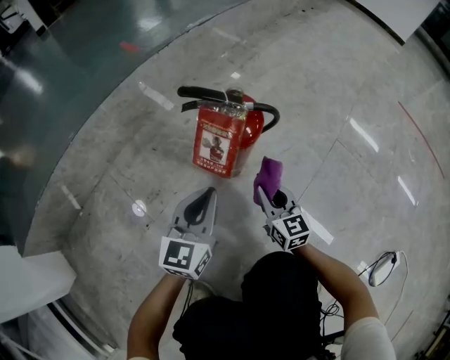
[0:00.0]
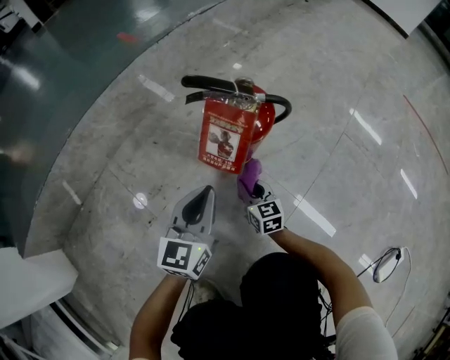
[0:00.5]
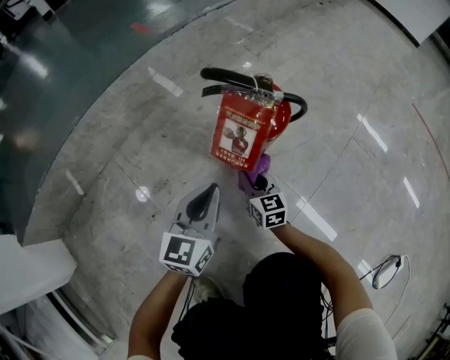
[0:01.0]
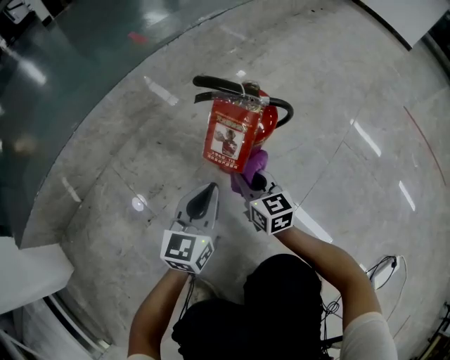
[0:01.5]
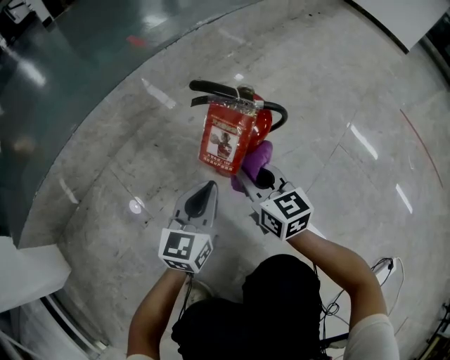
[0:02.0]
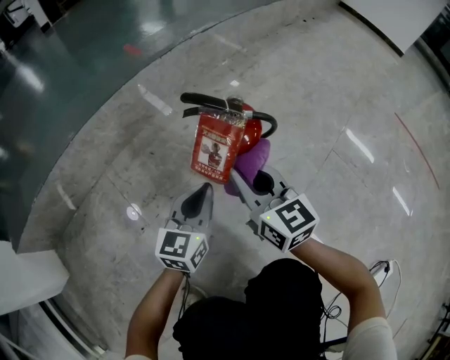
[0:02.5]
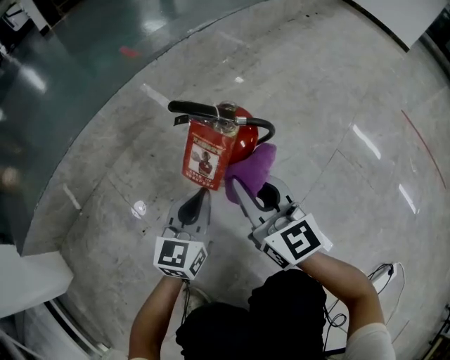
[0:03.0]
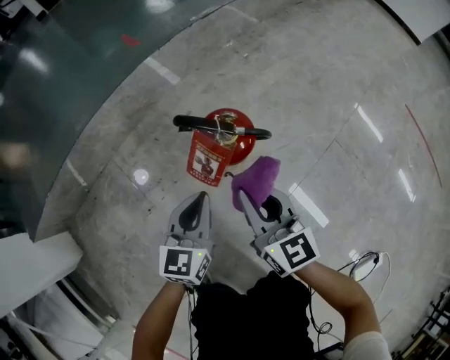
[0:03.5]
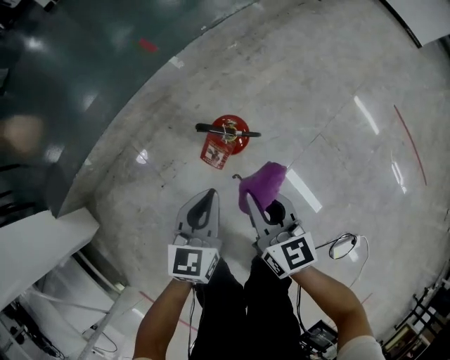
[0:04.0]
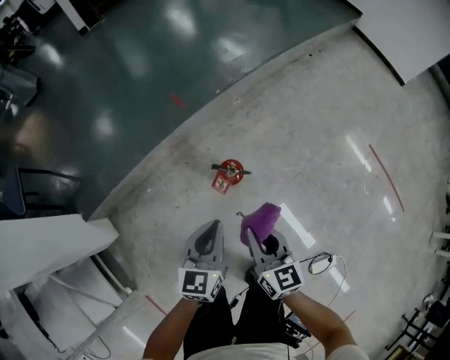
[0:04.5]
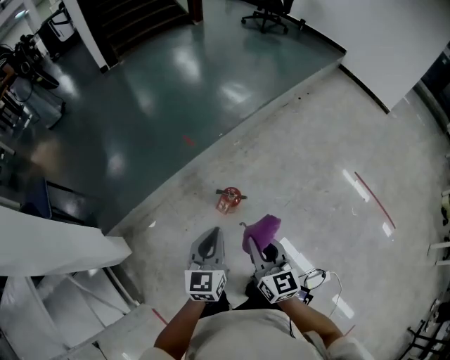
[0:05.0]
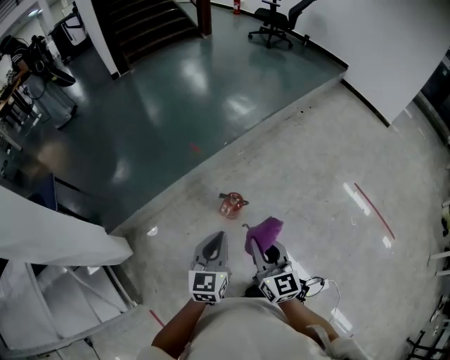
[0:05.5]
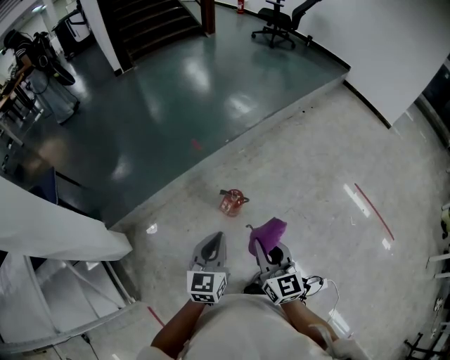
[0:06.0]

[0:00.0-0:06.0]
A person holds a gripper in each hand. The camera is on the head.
0:00.0 to 0:02.0: The right gripper travels upward and to the left by roughly 10 cm.
0:02.0 to 0:04.0: Both grippers move upward, some 30 cm.
0:04.0 to 0:06.0: Both grippers move upward, roughly 50 cm.

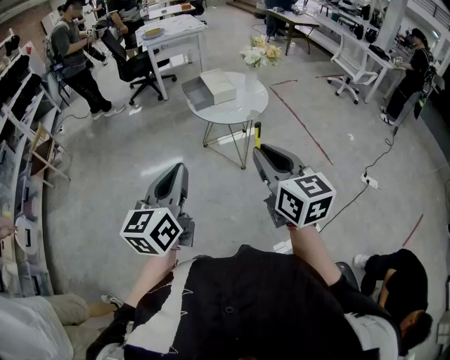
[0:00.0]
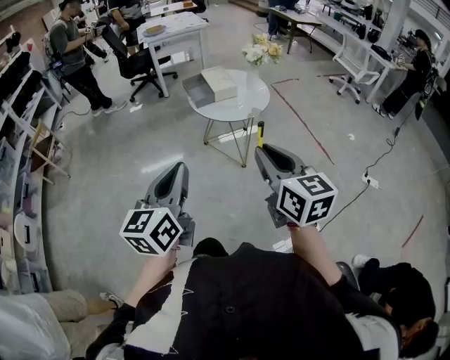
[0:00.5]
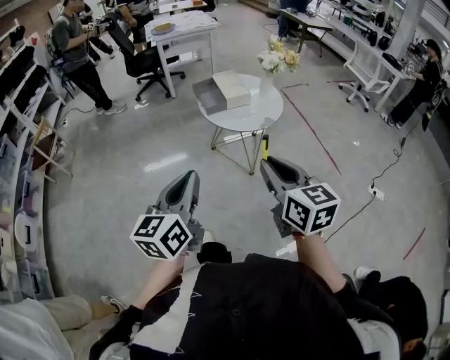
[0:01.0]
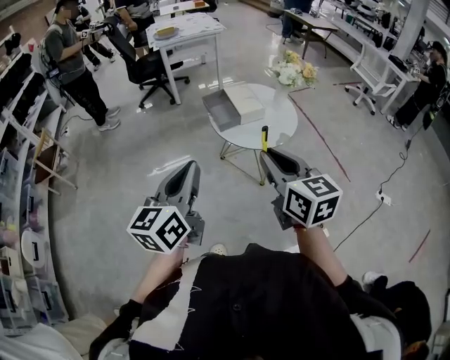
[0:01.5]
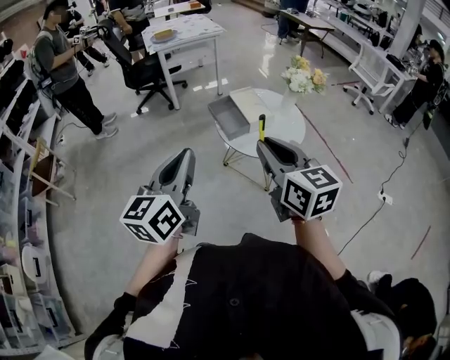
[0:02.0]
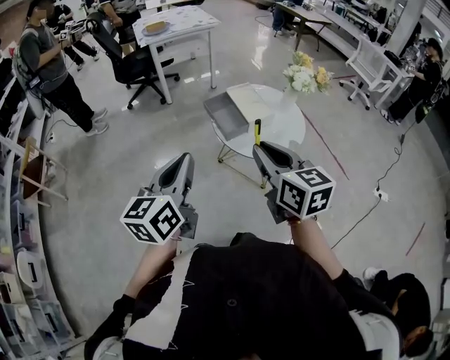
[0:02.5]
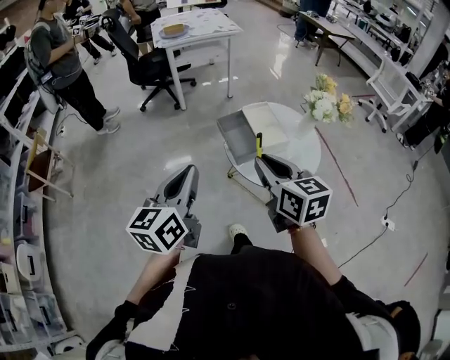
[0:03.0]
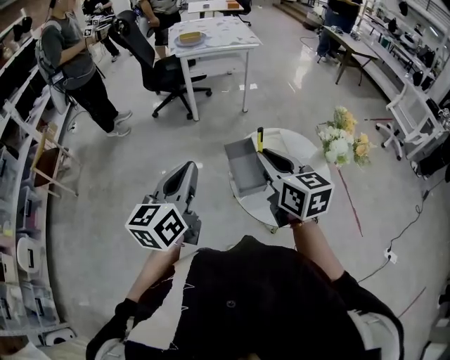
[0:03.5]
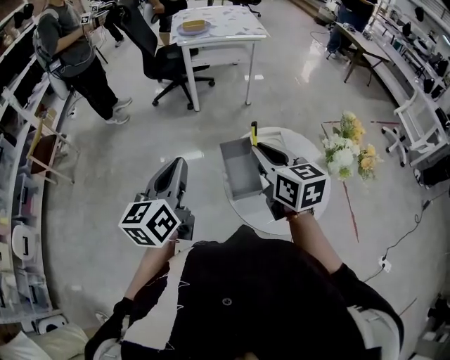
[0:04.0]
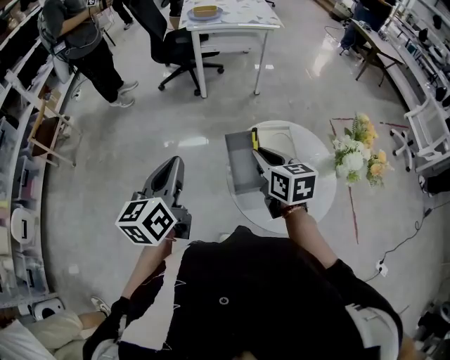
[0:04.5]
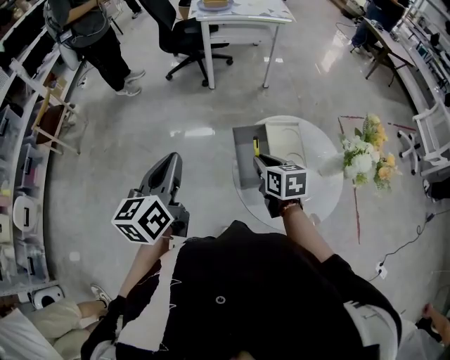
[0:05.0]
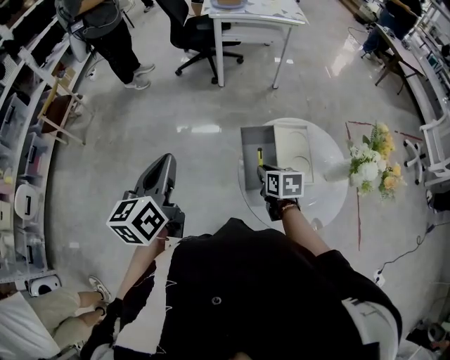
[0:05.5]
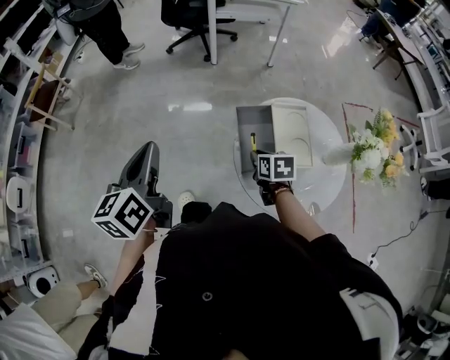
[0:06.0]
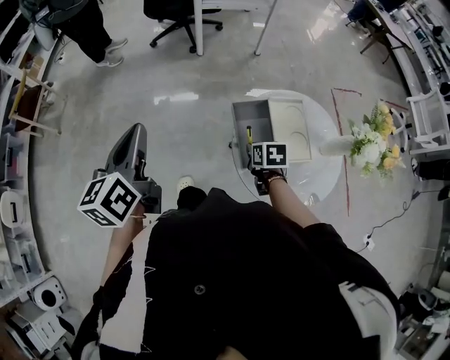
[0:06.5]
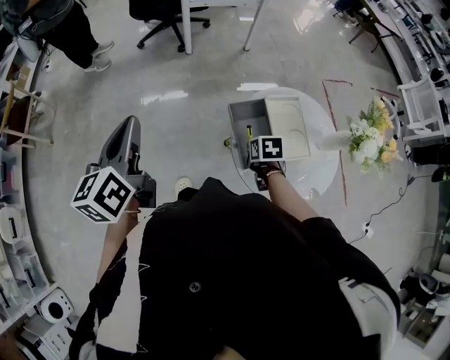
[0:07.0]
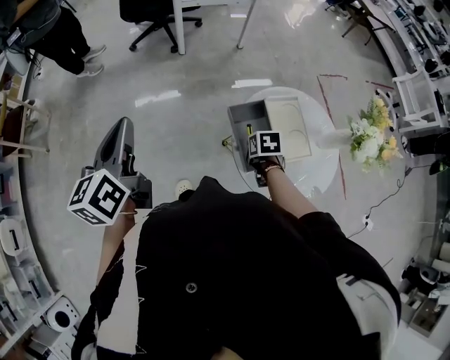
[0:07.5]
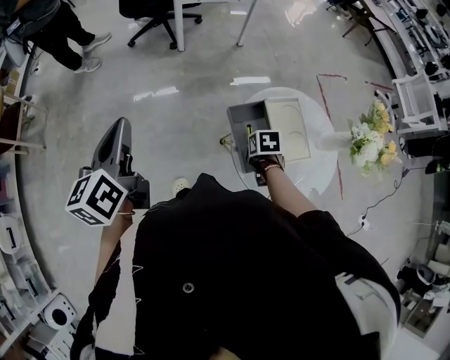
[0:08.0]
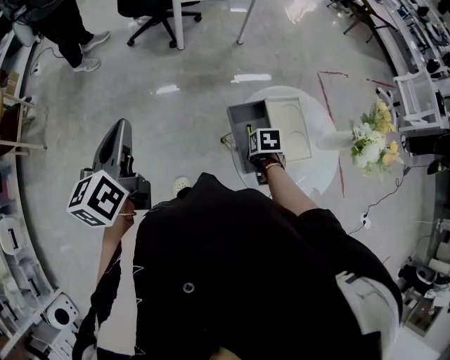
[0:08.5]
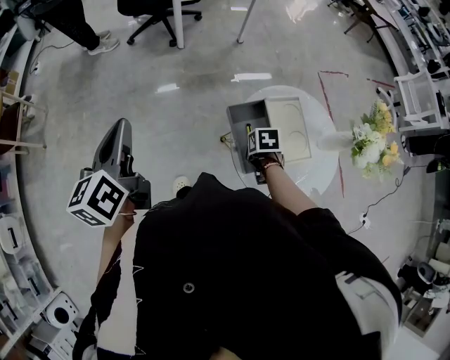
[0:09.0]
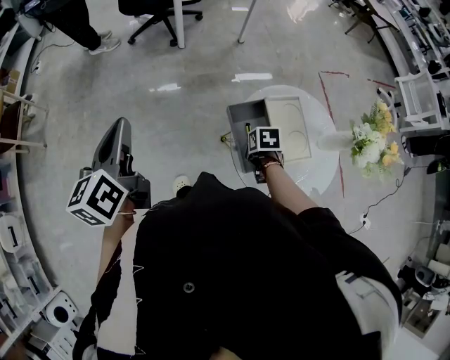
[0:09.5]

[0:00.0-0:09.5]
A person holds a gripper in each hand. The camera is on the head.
0:00.0 to 0:02.0: The two grippers go some 30 cm forward and to the left.
0:02.0 to 0:04.0: The grippers both shift forward by approximately 30 cm. The left gripper swivels about 20 degrees.
0:04.0 to 0:05.5: The right gripper travels downward by some 25 cm, and changes its angle by some 30 degrees; the left gripper heads to the left, covering about 5 cm.
0:05.5 to 0:07.5: The right gripper travels downward by some 5 cm, and swivels roughly 30 degrees; the left gripper goes some 15 cm forward and to the left.
0:07.5 to 0:09.5: There are only small adjustments of the grippers.

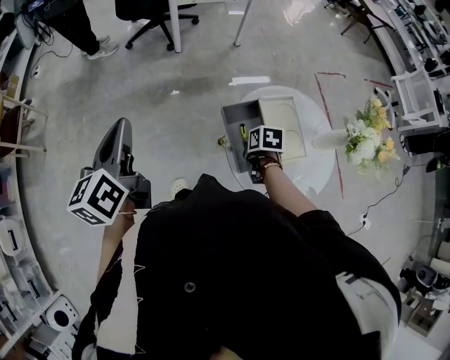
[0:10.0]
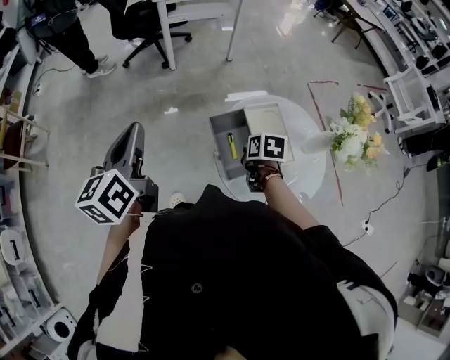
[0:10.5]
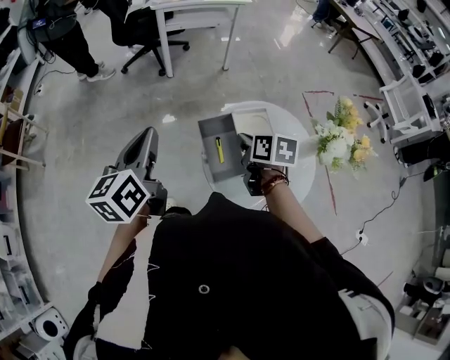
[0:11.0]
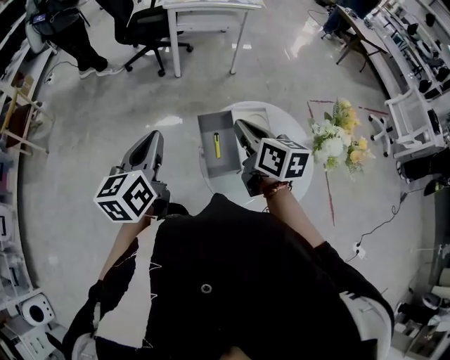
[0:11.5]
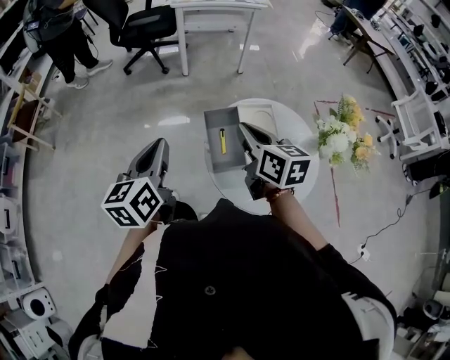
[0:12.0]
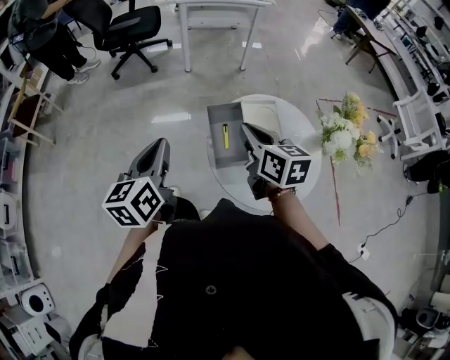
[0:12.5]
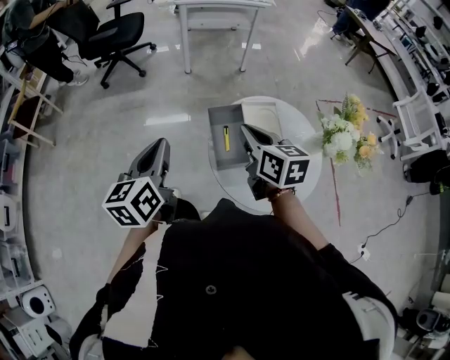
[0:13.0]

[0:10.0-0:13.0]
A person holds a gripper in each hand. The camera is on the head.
0:10.0 to 0:11.5: The left gripper shifts approximately 20 cm to the right and backward. Meanwhile the right gripper heads upward, covering roughly 25 cm, and points its fingers about 50 degrees further upward.
0:11.5 to 0:13.0: The left gripper ends up some 5 cm from where it was.

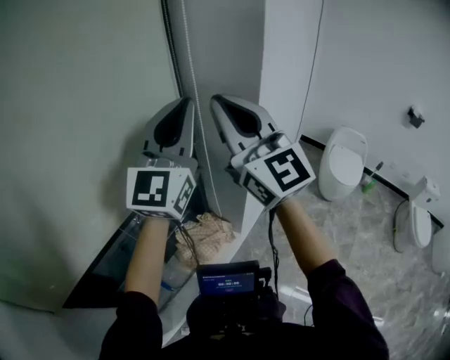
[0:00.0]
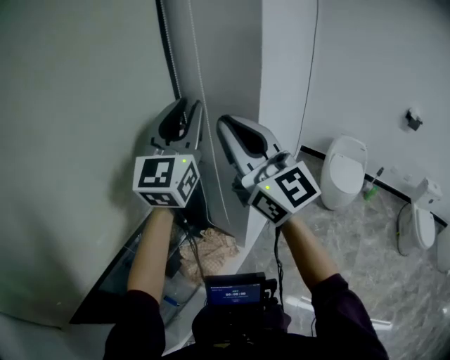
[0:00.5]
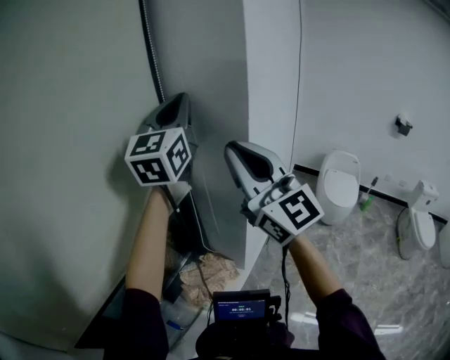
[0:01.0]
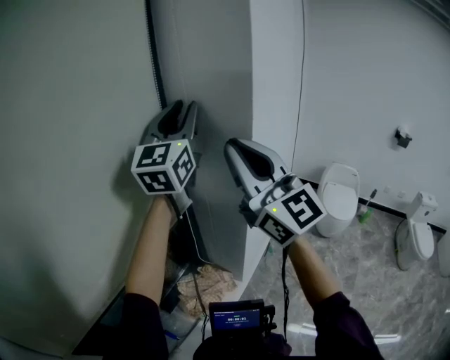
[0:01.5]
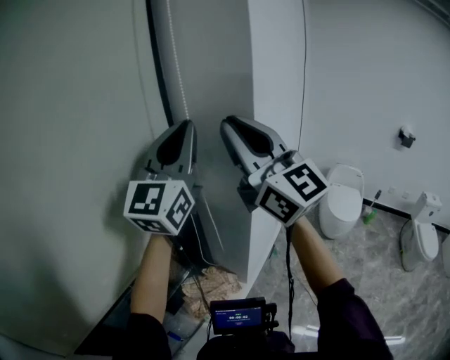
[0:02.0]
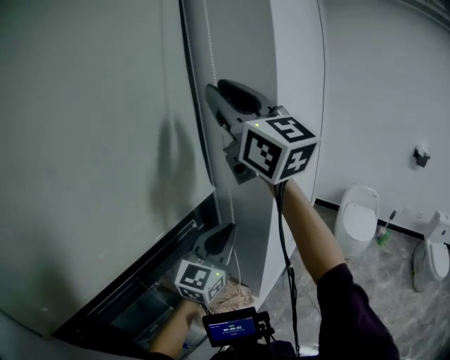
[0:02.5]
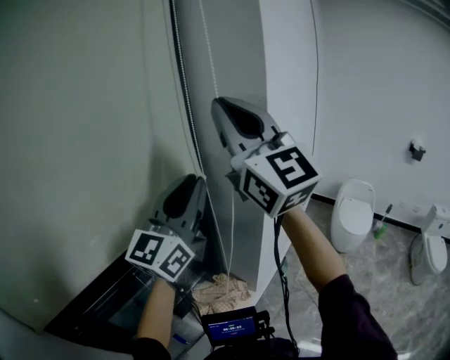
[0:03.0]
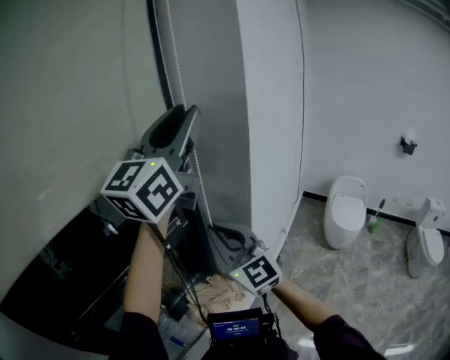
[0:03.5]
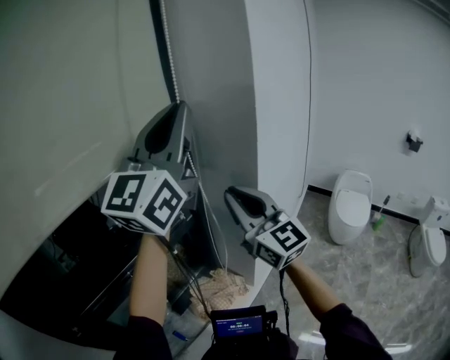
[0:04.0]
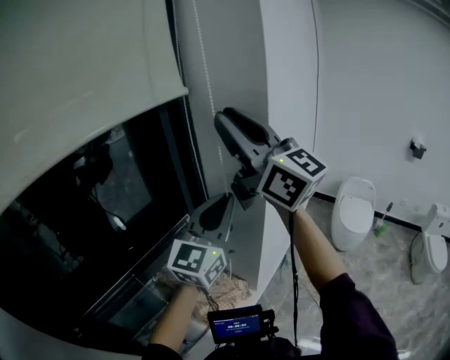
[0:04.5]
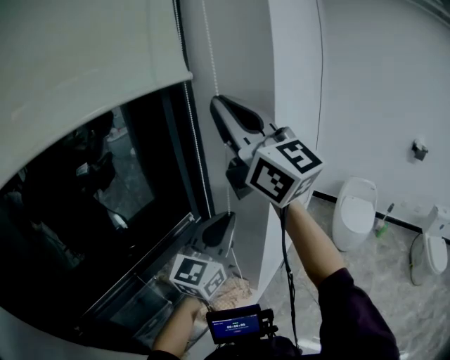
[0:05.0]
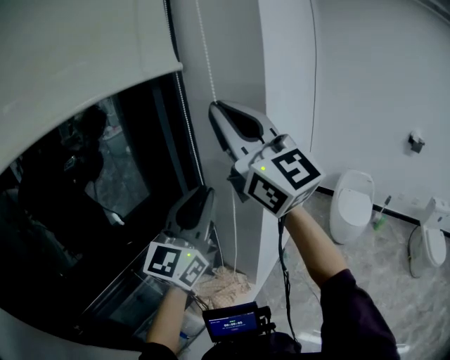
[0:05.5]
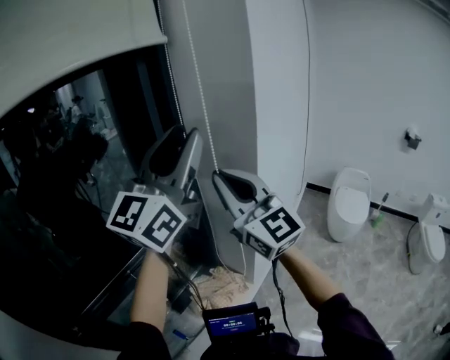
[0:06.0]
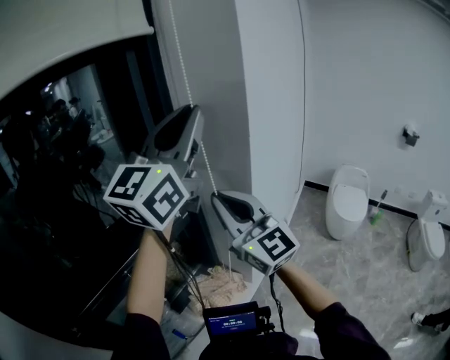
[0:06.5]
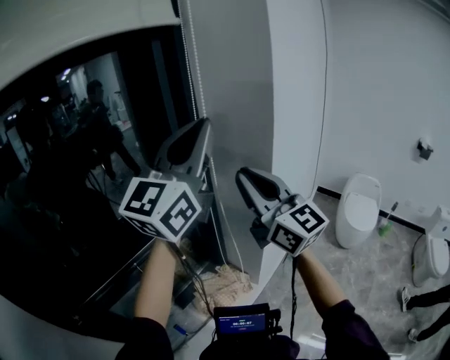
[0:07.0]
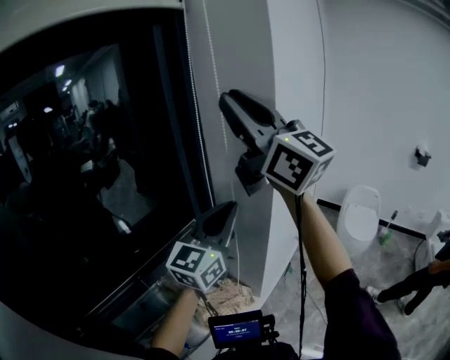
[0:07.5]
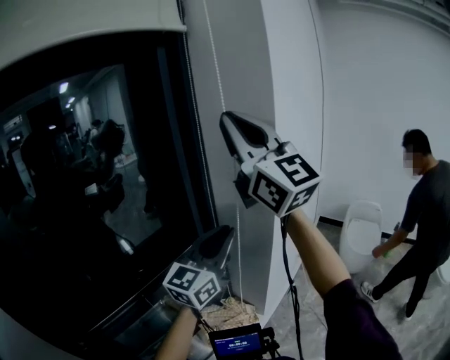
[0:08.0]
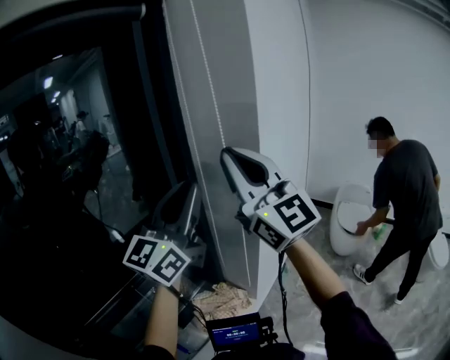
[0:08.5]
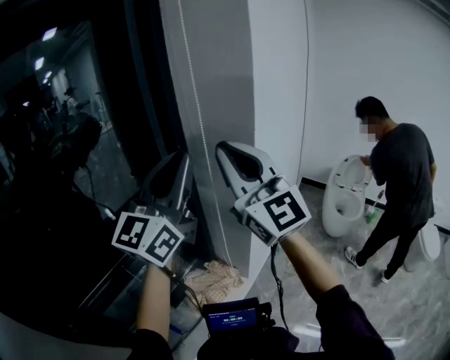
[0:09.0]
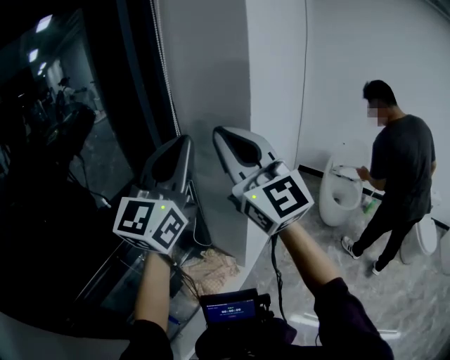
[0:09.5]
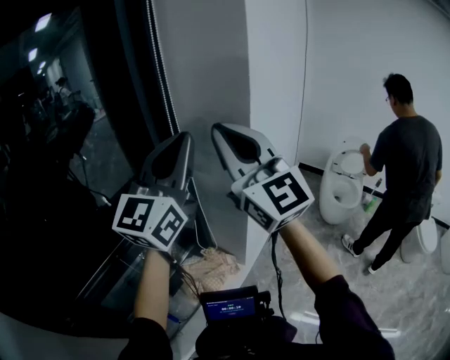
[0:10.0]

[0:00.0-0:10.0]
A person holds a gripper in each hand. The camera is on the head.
0:00.0 to 0:02.0: The left gripper is displaced upward and forward by approximately 10 cm; the right gripper is displaced upward by about 5 cm.
0:02.0 to 0:04.0: The right gripper goes up and down, about 30 cm each way, reversing 2 times, and opens and closes again; the left gripper travels downward and back again, some 20 cm each way, and opens and closes again.
0:04.0 to 0:06.0: The right gripper reaches roughly 20 cm upward, then returns. Meanwhile the left gripper moves approximately 25 cm downward and comes back.
0:06.0 to 0:08.0: The left gripper goes roughly 15 cm downward; the right gripper goes some 20 cm upward.
0:08.0 to 0:10.0: The right gripper travels downward by roughly 15 cm. Meanwhile the left gripper travels upward by roughly 10 cm.
